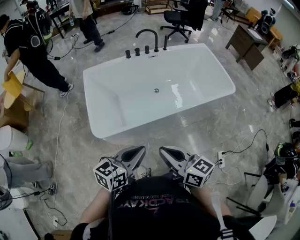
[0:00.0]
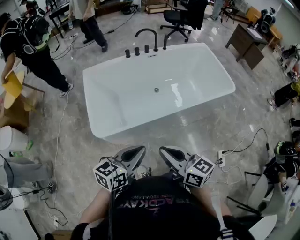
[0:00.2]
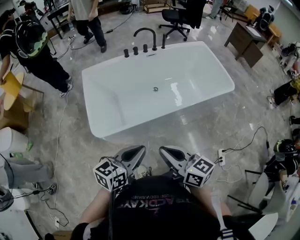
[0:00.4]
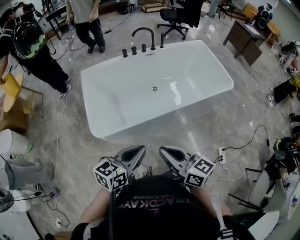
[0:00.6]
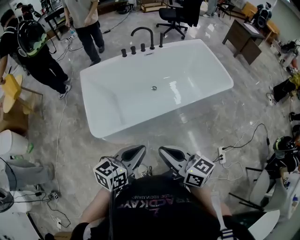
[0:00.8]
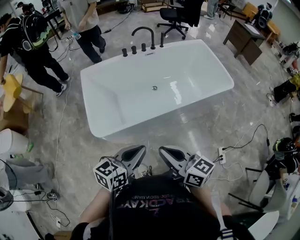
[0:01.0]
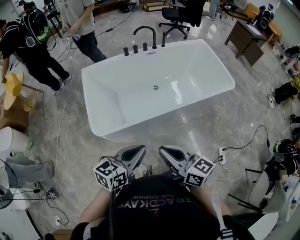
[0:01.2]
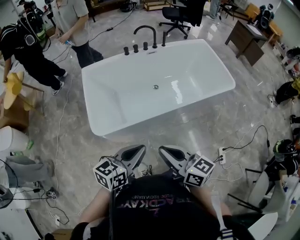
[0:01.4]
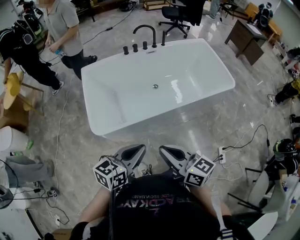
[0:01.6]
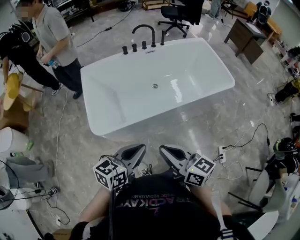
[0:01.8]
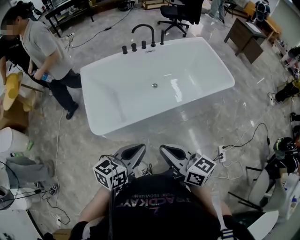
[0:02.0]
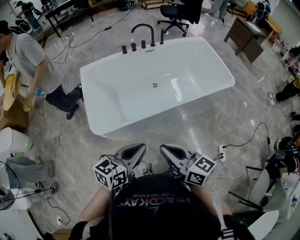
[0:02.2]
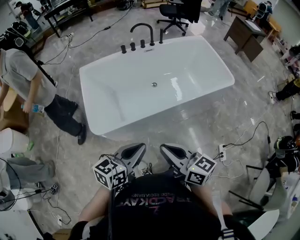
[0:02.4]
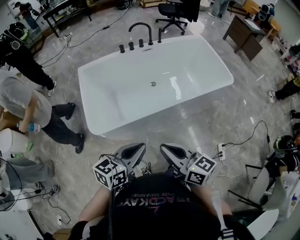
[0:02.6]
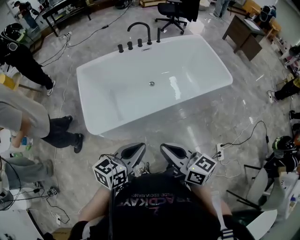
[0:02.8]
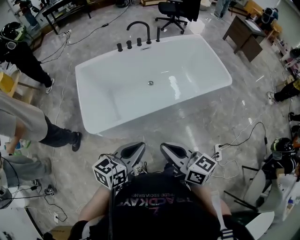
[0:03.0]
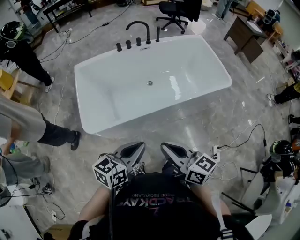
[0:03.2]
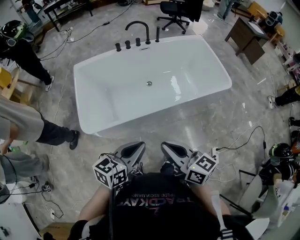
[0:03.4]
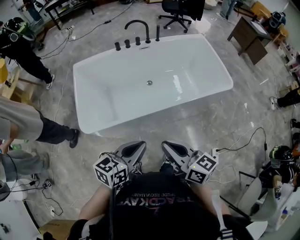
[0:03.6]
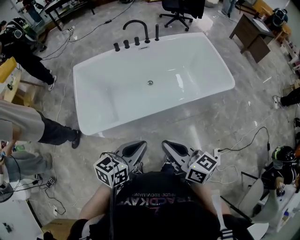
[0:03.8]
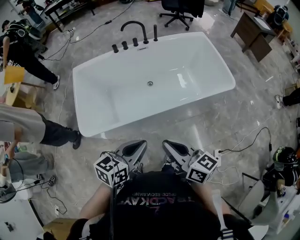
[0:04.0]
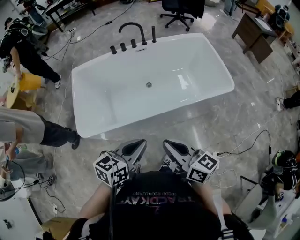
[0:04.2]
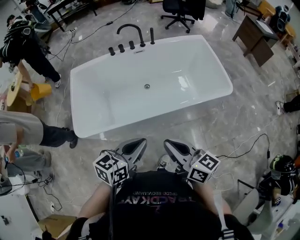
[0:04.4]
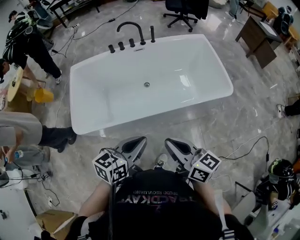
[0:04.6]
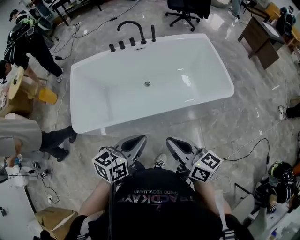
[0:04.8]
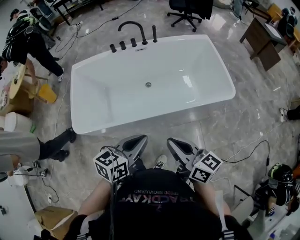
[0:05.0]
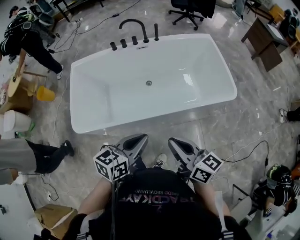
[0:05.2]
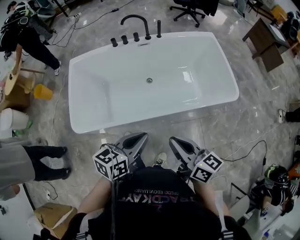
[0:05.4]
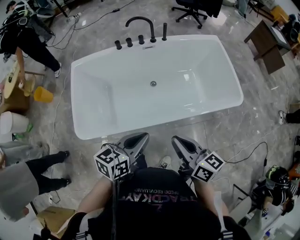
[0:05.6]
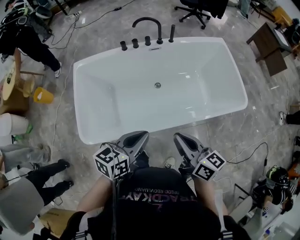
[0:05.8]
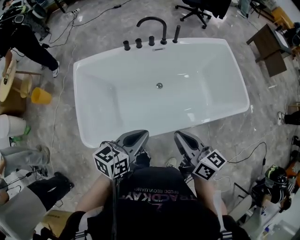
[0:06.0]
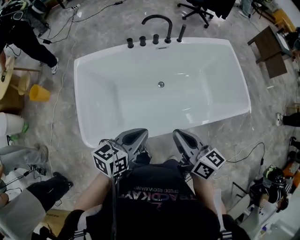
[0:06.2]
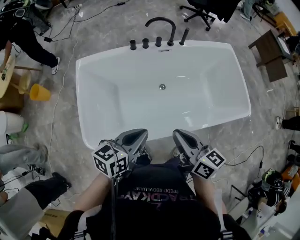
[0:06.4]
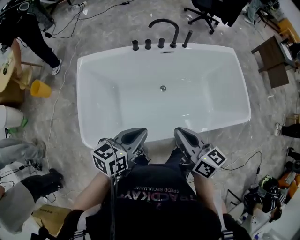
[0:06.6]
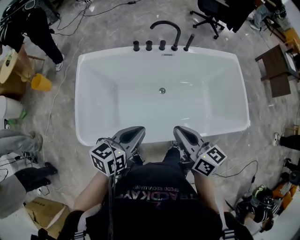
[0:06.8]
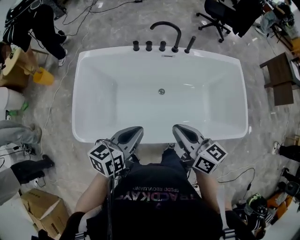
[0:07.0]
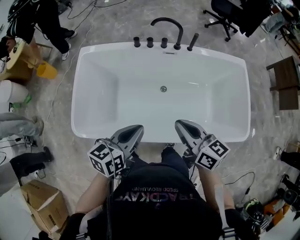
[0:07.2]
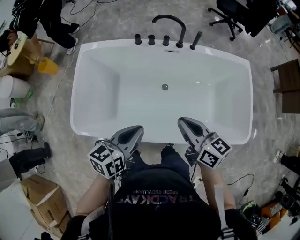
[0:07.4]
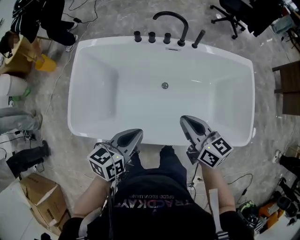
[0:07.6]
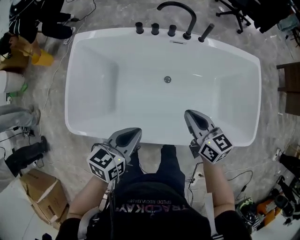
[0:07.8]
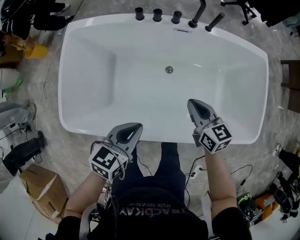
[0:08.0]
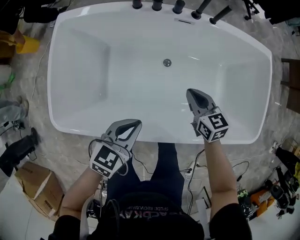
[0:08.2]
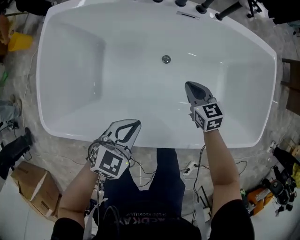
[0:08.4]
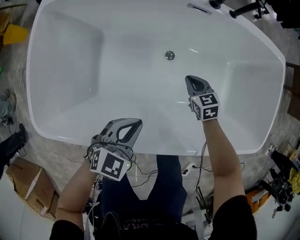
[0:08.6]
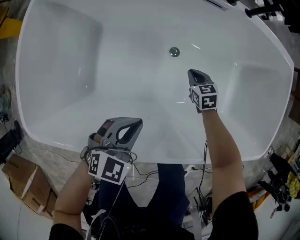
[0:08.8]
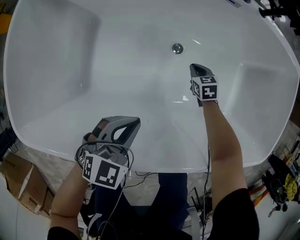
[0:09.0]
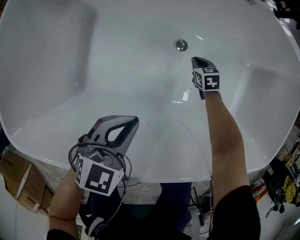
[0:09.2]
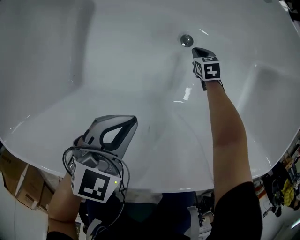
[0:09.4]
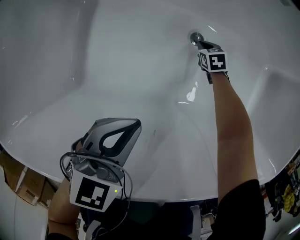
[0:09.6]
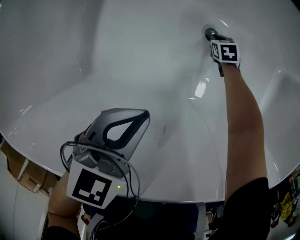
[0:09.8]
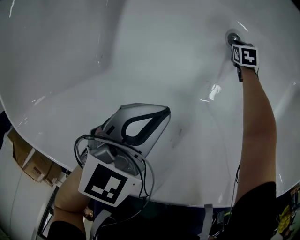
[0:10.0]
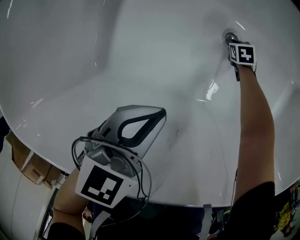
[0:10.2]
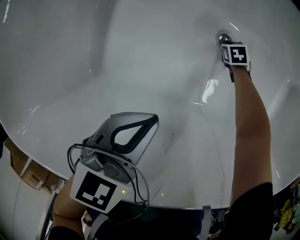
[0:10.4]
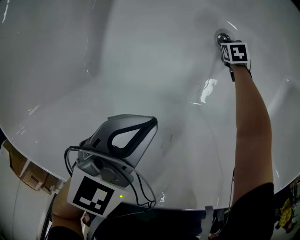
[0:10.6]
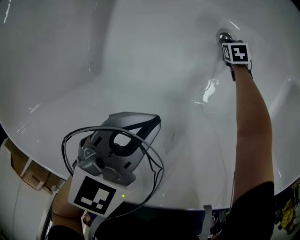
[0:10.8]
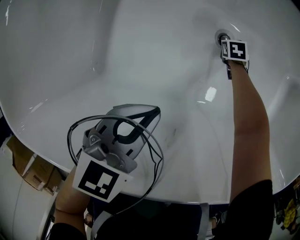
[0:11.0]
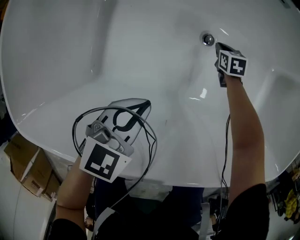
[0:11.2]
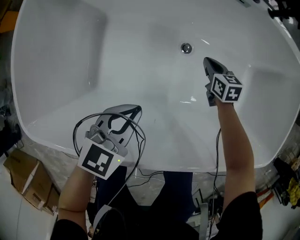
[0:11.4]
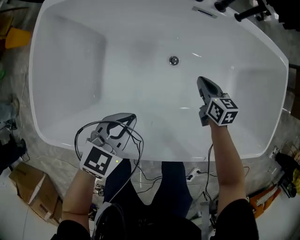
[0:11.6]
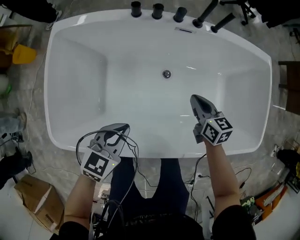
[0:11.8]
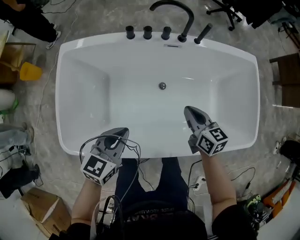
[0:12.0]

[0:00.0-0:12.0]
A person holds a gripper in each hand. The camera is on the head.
0:00.0 to 0:01.6: Both grippers stay about where they are.
0:01.6 to 0:03.0: The grippers move only a little.
0:03.0 to 0:04.4: Both grippers travel together to the right and forward, approximately 20 cm.
0:04.4 to 0:06.0: Both grippers move forward and to the left, some 20 cm.
0:06.0 to 0:07.6: The right gripper moves forward and to the right, approximately 15 cm, and turns by some 20 degrees, while the left gripper moves forward and to the right, about 10 cm, and changes its angle by about 20 degrees.
0:07.6 to 0:09.0: The right gripper moves downward, roughly 50 cm, and points its fingers some 40 degrees further downward, while the left gripper moves downward, some 25 cm, and twists some 40 degrees clockwise, seen from behind.
0:09.0 to 0:10.4: The right gripper is displaced downward by about 20 cm, while the left gripper moves downward, approximately 10 cm, and turns by approximately 20 degrees.
0:10.4 to 0:12.0: The right gripper goes some 60 cm upward, and points its fingers roughly 50 degrees further upward. The left gripper moves upward, roughly 25 cm.

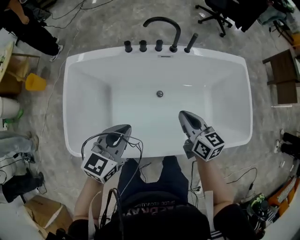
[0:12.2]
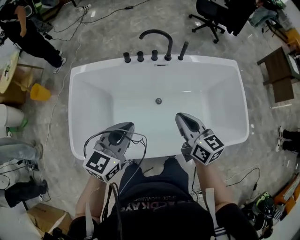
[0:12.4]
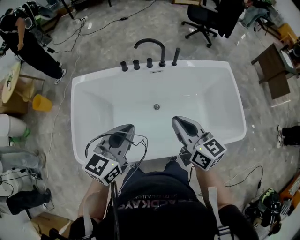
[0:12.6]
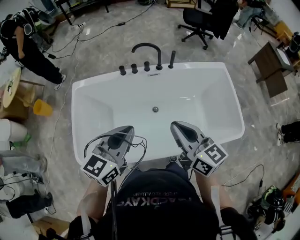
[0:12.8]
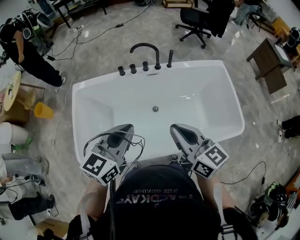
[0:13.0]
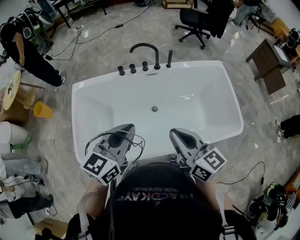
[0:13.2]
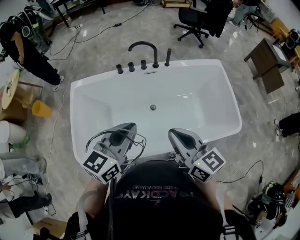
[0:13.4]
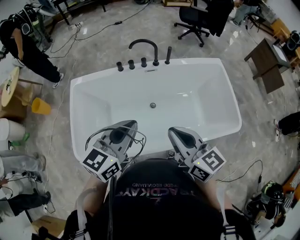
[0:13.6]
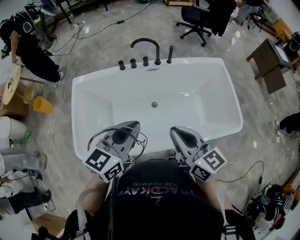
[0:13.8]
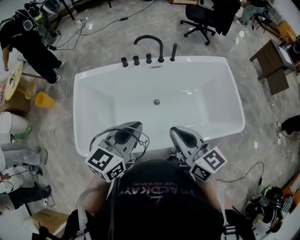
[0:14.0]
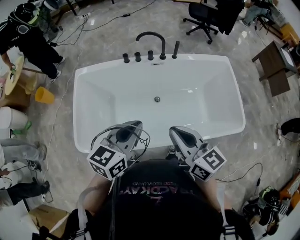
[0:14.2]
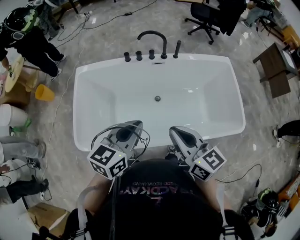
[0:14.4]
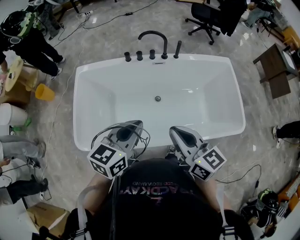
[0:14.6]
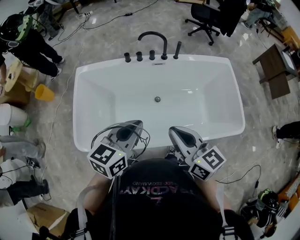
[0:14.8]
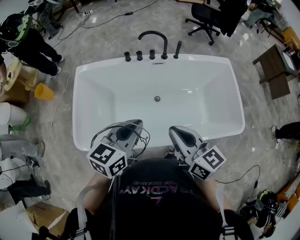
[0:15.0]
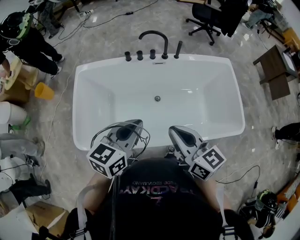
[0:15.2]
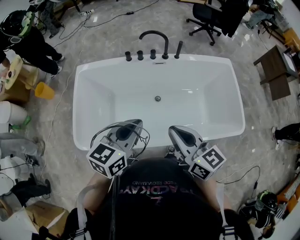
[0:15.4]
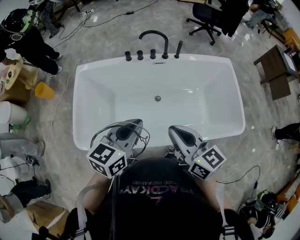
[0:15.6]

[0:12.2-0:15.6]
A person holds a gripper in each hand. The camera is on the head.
0:12.2 to 0:13.8: The right gripper moves upward and backward, some 25 cm, while the left gripper is displaced upward, to the right and backward by roughly 15 cm.
0:13.8 to 0:15.6: The grippers move only a little.

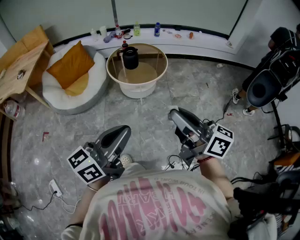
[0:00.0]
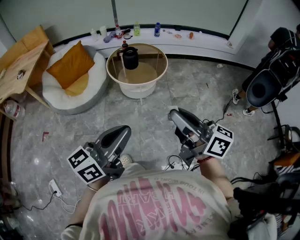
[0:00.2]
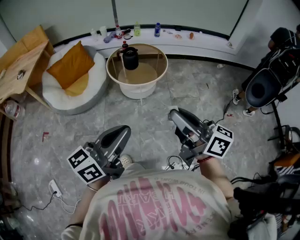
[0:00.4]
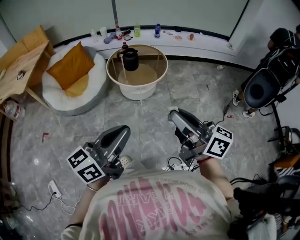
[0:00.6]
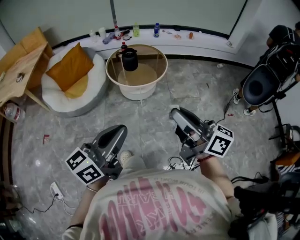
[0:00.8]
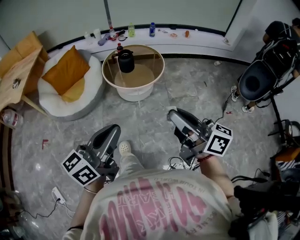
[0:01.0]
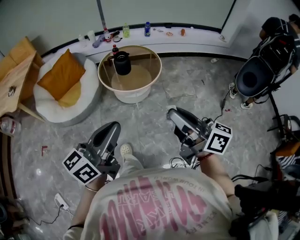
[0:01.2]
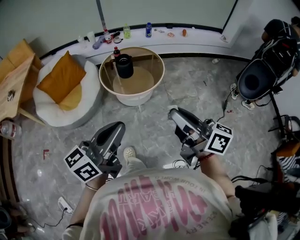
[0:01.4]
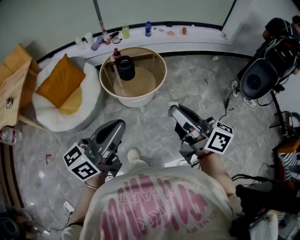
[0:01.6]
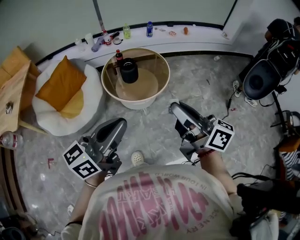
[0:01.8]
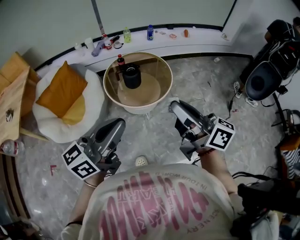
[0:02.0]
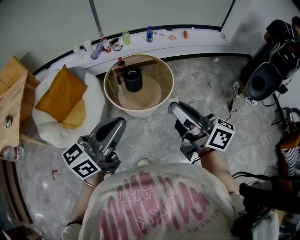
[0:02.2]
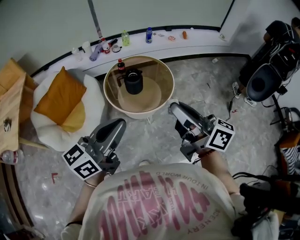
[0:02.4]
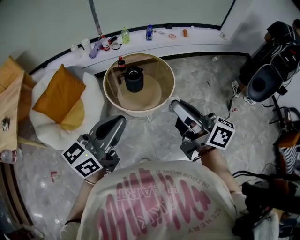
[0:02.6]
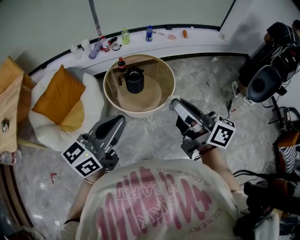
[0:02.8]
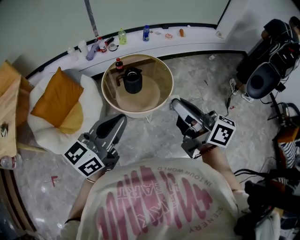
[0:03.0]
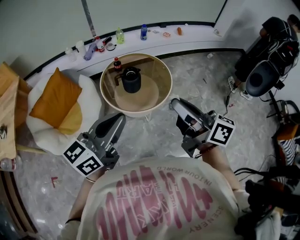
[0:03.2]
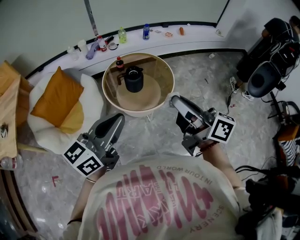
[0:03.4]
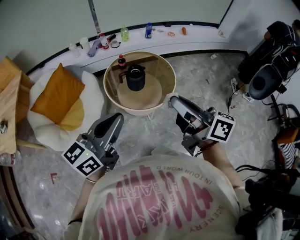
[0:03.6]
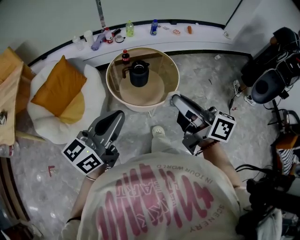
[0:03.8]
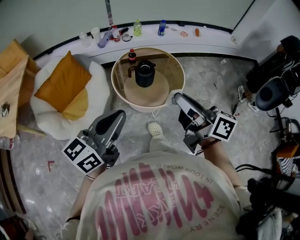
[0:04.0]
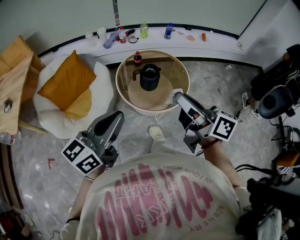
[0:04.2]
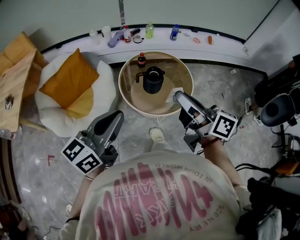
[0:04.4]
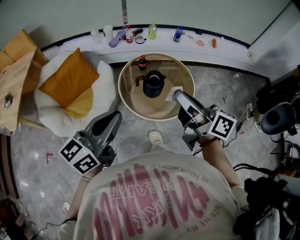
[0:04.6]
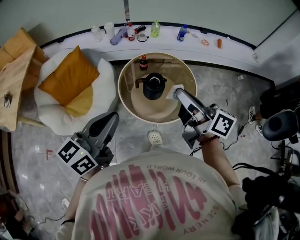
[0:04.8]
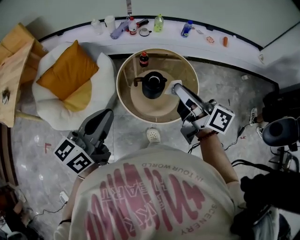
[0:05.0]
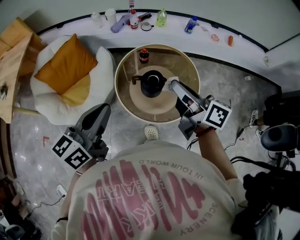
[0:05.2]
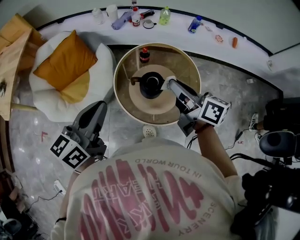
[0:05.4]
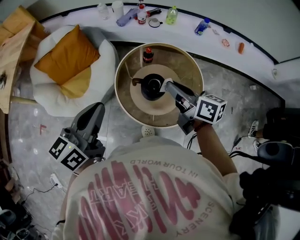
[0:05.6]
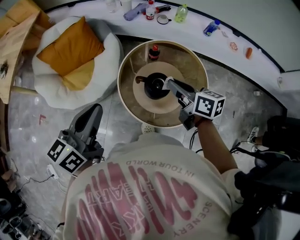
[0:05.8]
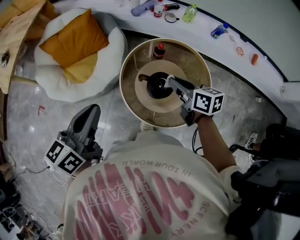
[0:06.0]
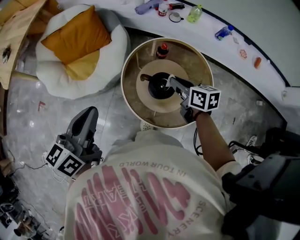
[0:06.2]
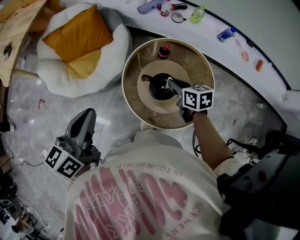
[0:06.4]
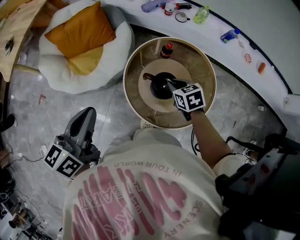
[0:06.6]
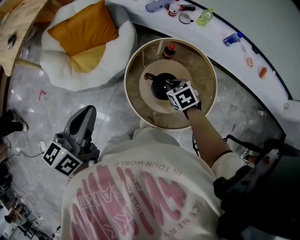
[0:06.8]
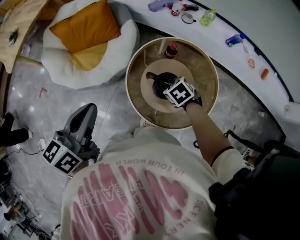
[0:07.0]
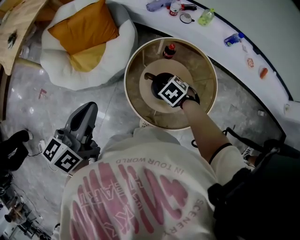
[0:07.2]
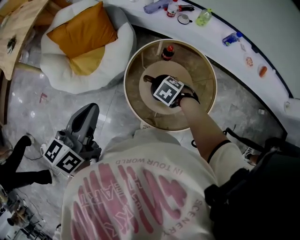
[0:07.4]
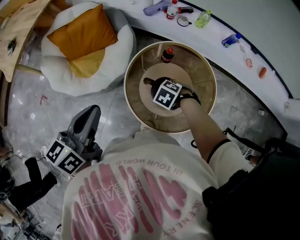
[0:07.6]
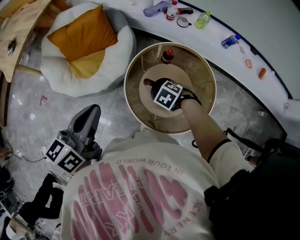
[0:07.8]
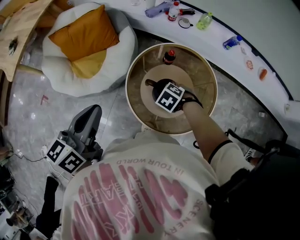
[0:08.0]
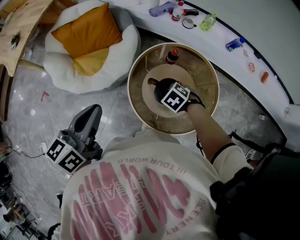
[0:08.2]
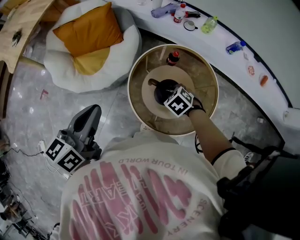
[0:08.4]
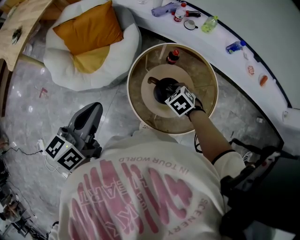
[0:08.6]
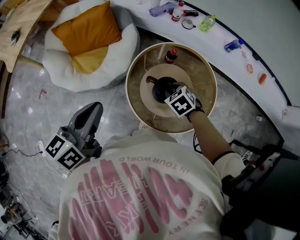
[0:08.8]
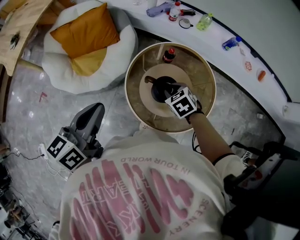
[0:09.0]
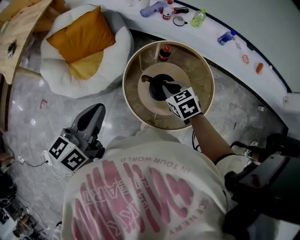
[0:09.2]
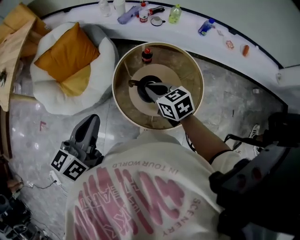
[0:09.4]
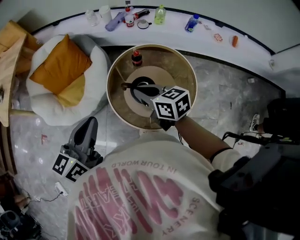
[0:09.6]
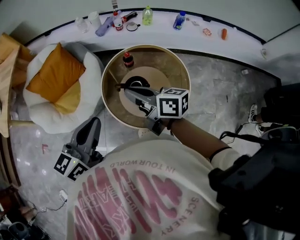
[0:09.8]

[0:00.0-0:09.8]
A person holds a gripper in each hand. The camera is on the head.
0:00.0 to 0:01.4: Both grippers travel together forward, some 15 cm.
0:01.4 to 0:02.8: Both grippers move forward and to the left, approximately 25 cm.
0:02.8 to 0:04.2: The left gripper goes approximately 5 cm to the left; the right gripper shifts by some 5 cm.
0:04.2 to 0:05.6: The left gripper heads forward, covering about 25 cm, and swivels some 30 degrees. Meanwhile the right gripper travels forward and downward by about 35 cm, and swivels about 30 degrees.
0:05.6 to 0:07.0: The right gripper goes roughly 20 cm downward, and tilts its fingers roughly 50 degrees downward. Meanwhile the left gripper ends up roughly 5 cm from where it was.
0:08.4 to 0:09.8: The left gripper heads to the right, covering roughly 10 cm, and swivels approximately 20 degrees. The right gripper moves upward, roughly 20 cm, and angles its fingers upward, by approximately 70 degrees.
